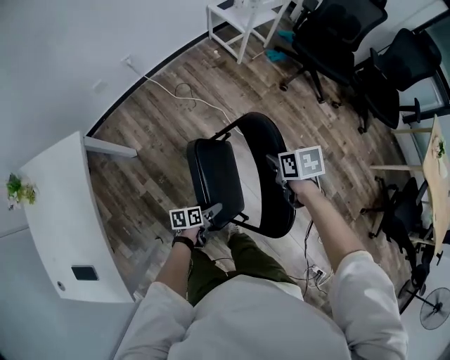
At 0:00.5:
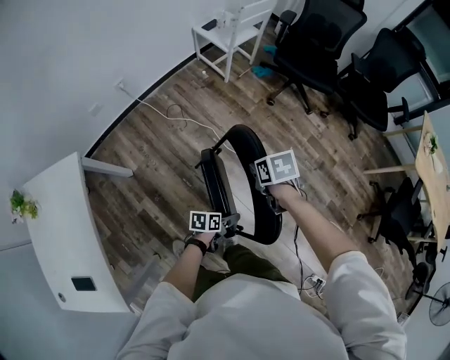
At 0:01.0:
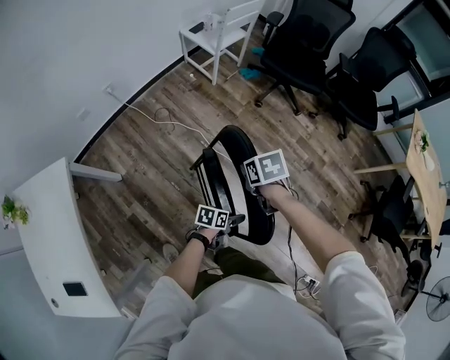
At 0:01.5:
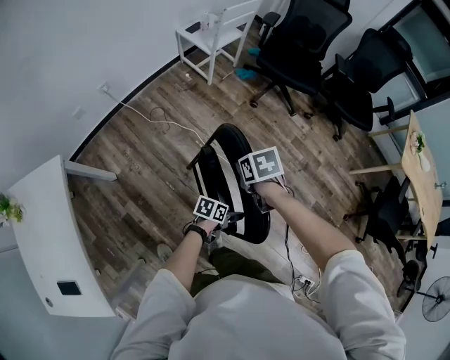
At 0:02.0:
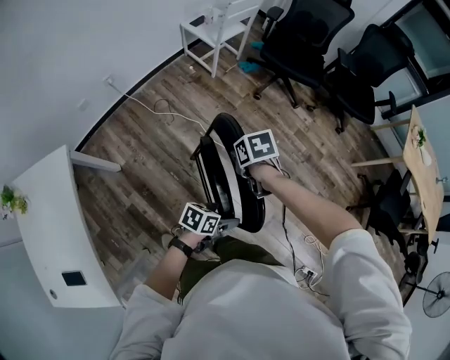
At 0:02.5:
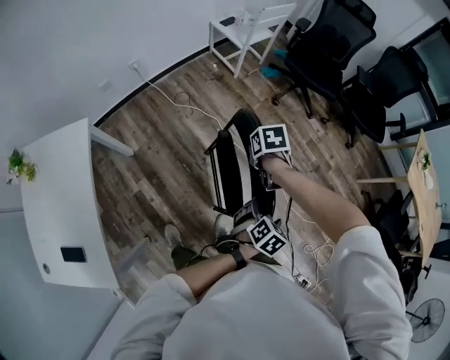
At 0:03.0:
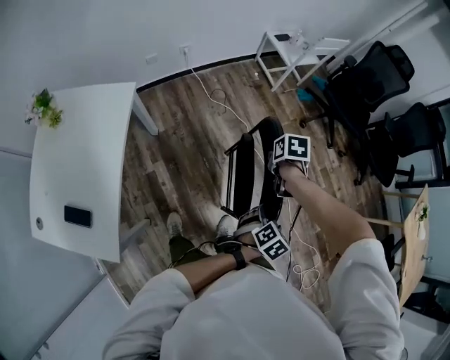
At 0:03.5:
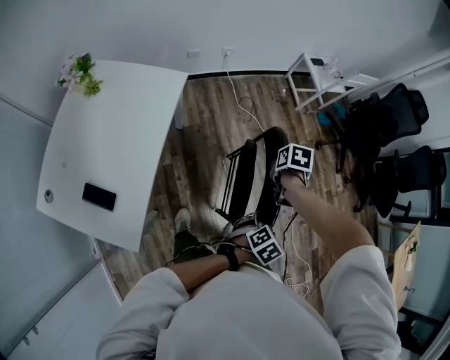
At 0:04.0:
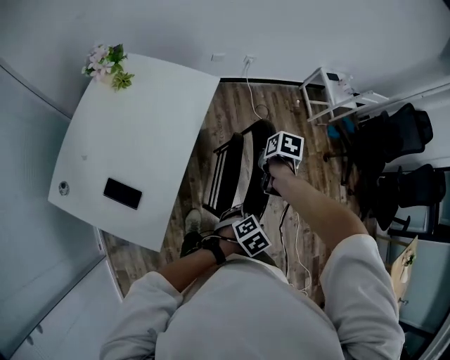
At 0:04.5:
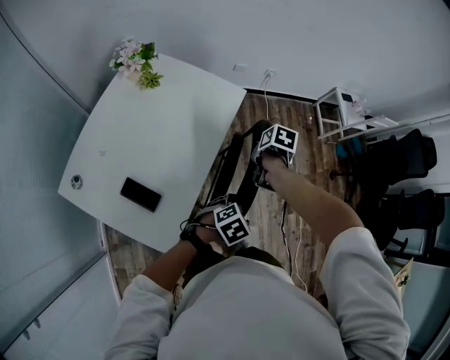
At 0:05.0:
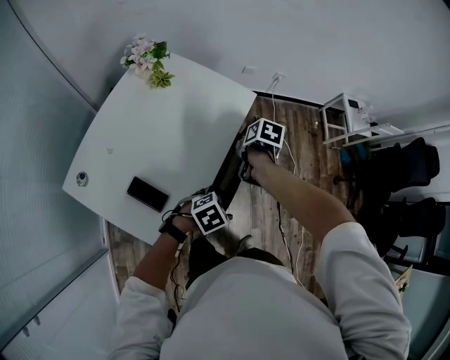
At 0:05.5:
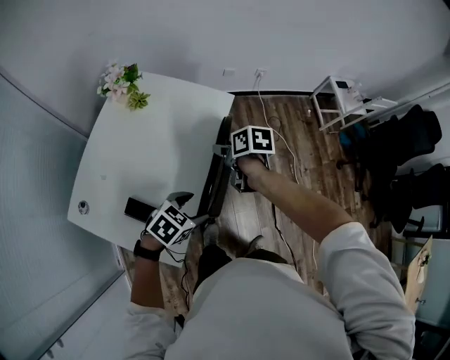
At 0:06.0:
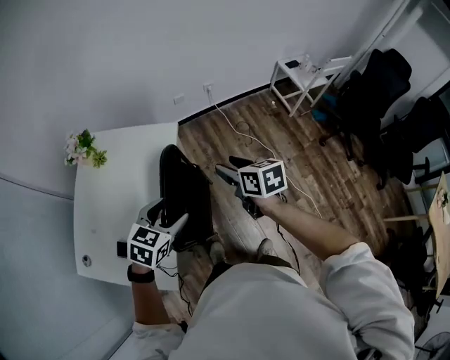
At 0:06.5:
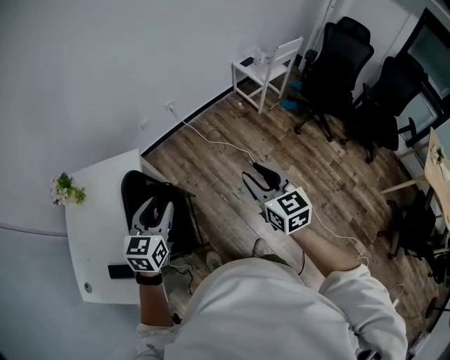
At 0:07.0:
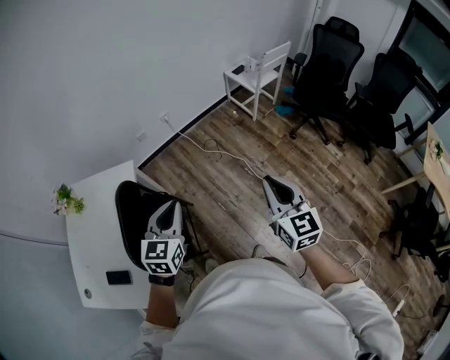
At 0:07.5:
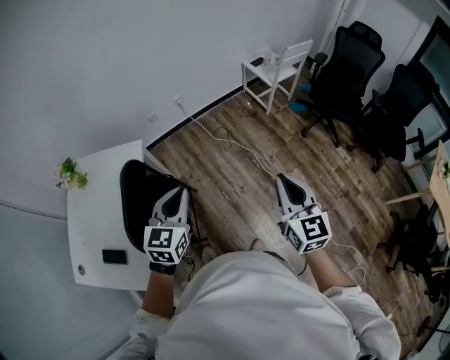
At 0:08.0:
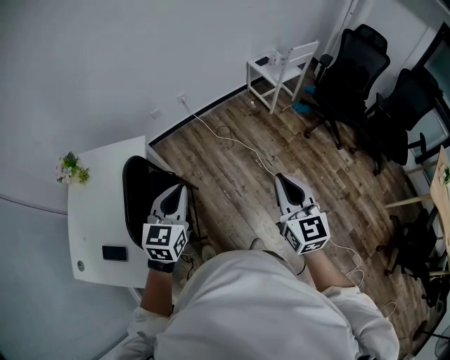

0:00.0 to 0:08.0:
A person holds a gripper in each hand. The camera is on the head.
0:00.0 to 0:02.0: The left gripper moves approximately 25 cm, and changes its angle by approximately 40 degrees.
0:02.0 to 0:04.0: The right gripper changes place by approximately 50 cm. Meanwhile the left gripper ends up some 40 cm from where it was, and swivels roughly 40 degrees.
0:04.0 to 0:06.0: The right gripper travels upward by approximately 15 cm, points its fingers some 40 degrees further upward, and opens up, while the left gripper ends up some 25 cm from where it was, and rotates some 20 degrees.
0:06.0 to 0:08.0: The right gripper is displaced to the right by approximately 35 cm, rotates approximately 40 degrees, and closes its fingers. Meanwhile the left gripper goes roughly 25 cm to the right and upward, swivels about 20 degrees, and closes its fingers.

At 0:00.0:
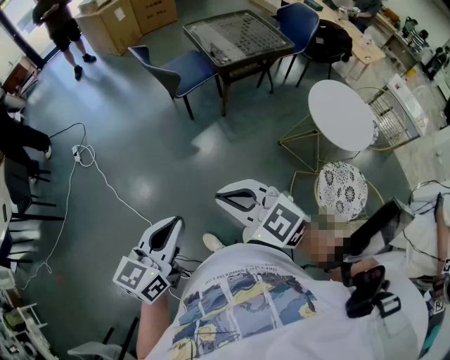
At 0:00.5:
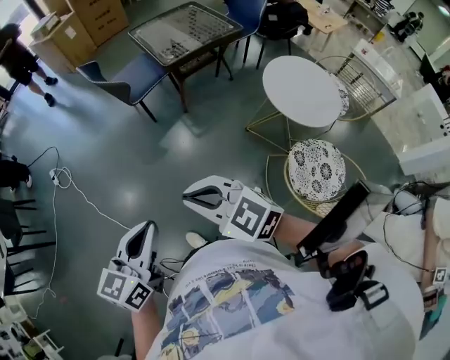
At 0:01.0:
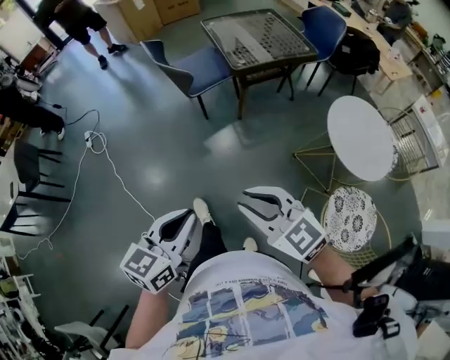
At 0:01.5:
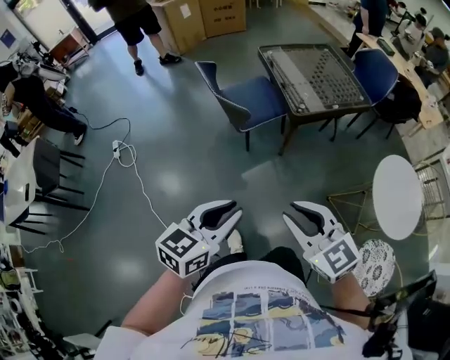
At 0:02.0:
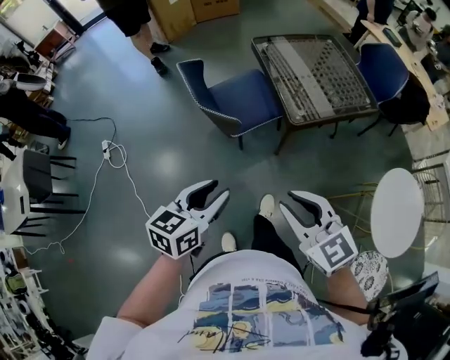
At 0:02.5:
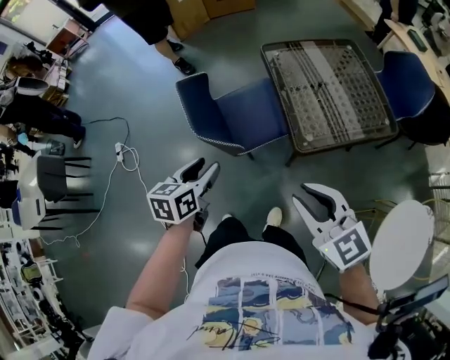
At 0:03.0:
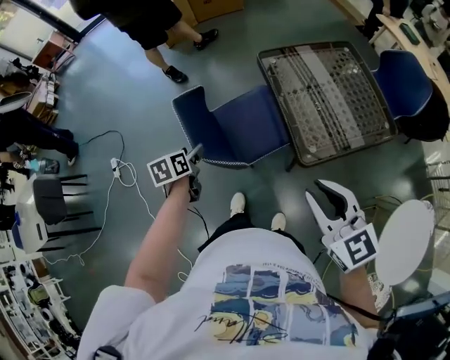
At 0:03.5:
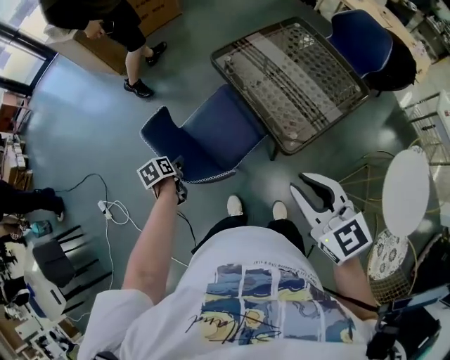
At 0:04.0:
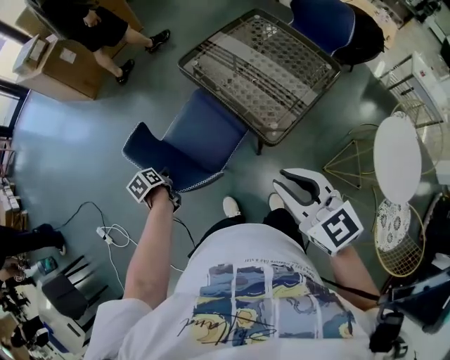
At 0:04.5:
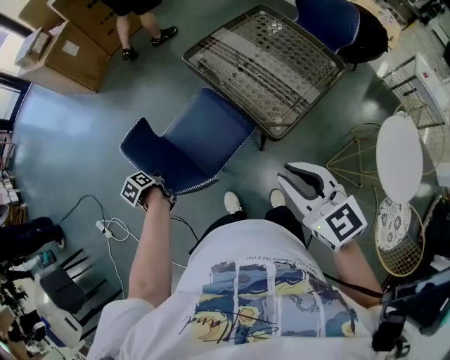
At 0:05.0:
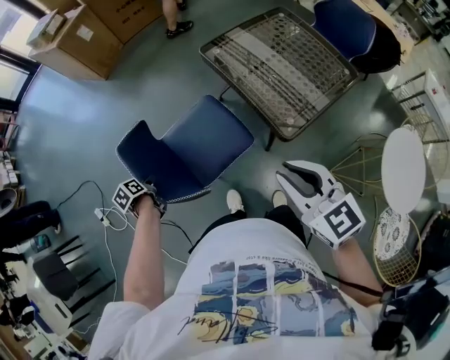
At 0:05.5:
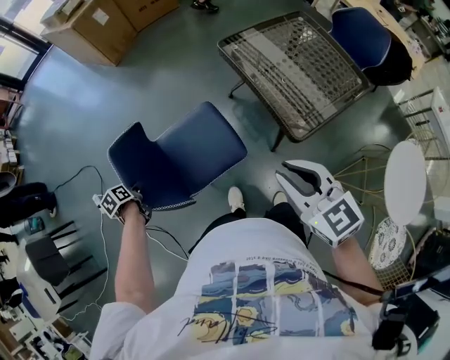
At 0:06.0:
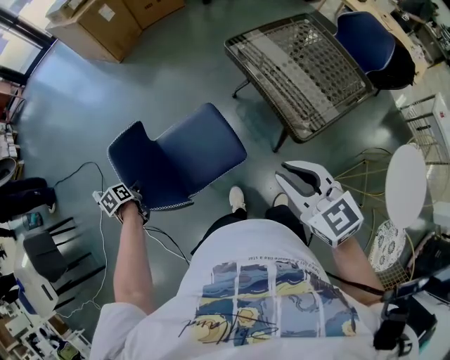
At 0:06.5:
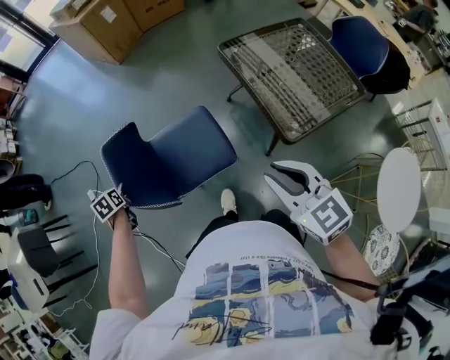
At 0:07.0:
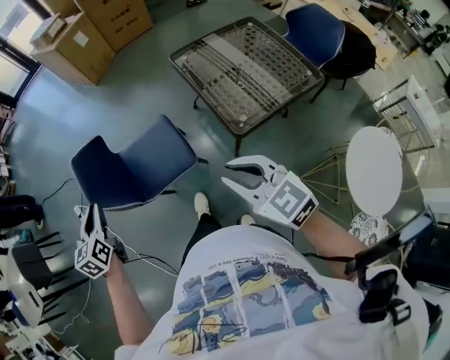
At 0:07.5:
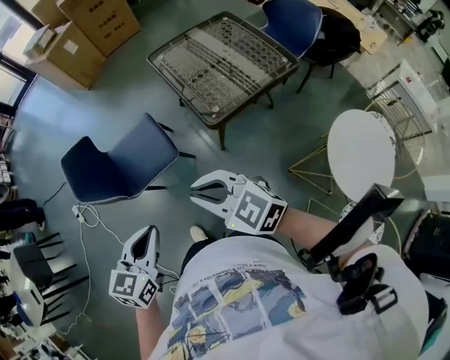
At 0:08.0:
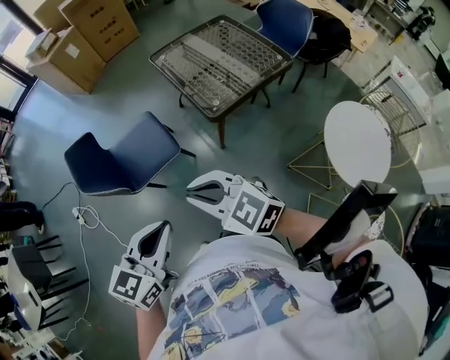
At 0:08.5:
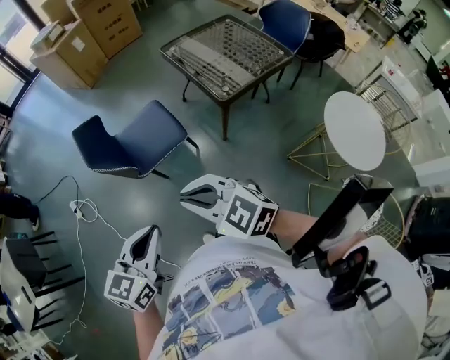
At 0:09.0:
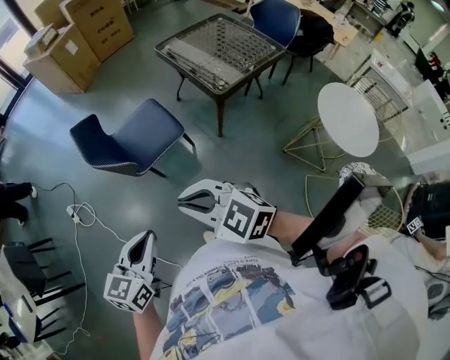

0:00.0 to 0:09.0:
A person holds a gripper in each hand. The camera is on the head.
0:00.0 to 0:02.0: The pair of grippers is taken forward, some 50 cm. The left gripper opens.
0:02.0 to 0:04.5: The right gripper travels forward by about 25 cm, and turns by some 20 degrees, while the left gripper moves forward, downward and to the left, some 50 cm, angles its fingers downward, by roughly 30 degrees, and opens, then closes again.
0:04.5 to 0:07.0: The right gripper ends up approximately 10 cm from where it was, and swivels roughly 30 degrees; the left gripper moves upward, approximately 25 cm, and swivels about 50 degrees.
0:07.0 to 0:09.0: The right gripper is displaced to the left and backward by some 35 cm, while the left gripper goes approximately 35 cm backward, and turns by roughly 40 degrees.

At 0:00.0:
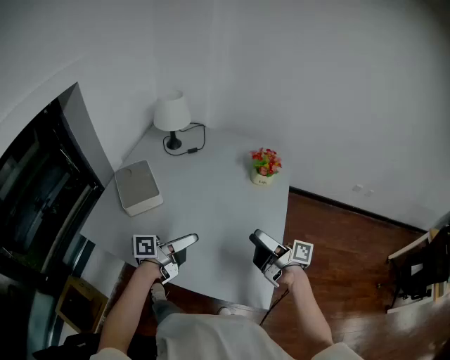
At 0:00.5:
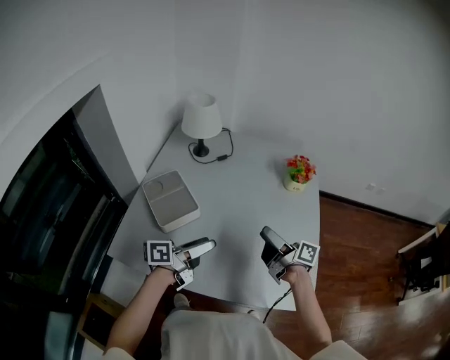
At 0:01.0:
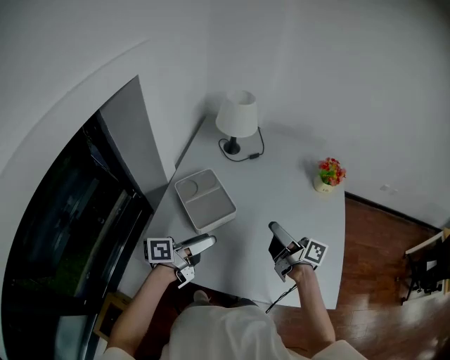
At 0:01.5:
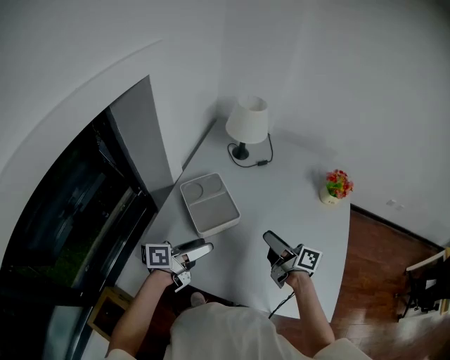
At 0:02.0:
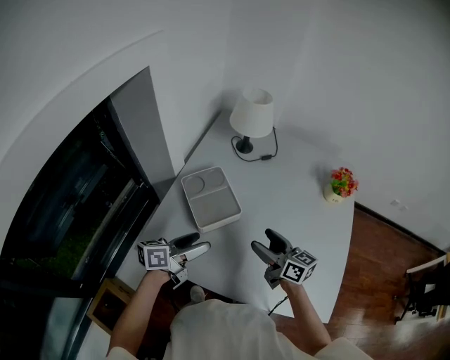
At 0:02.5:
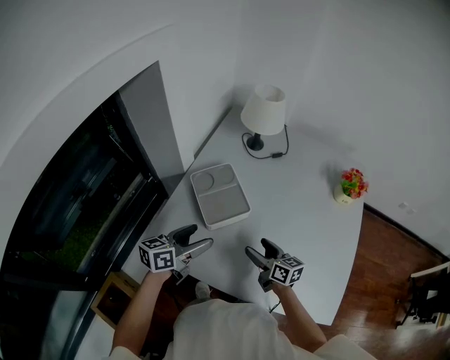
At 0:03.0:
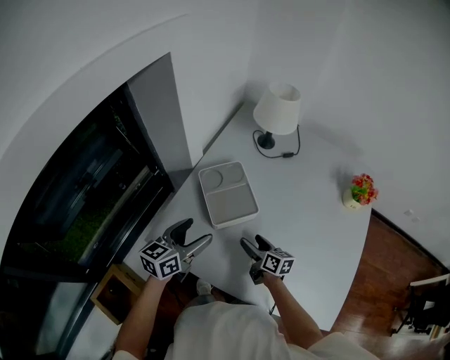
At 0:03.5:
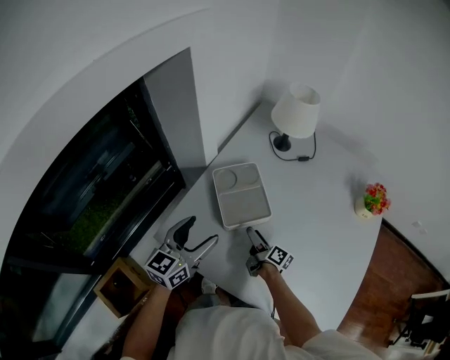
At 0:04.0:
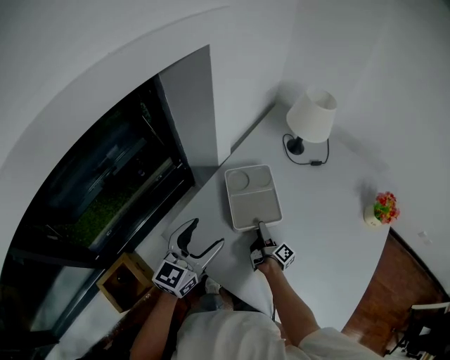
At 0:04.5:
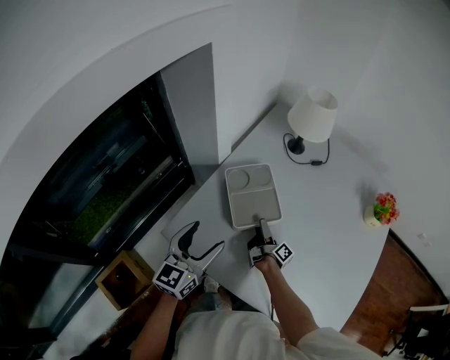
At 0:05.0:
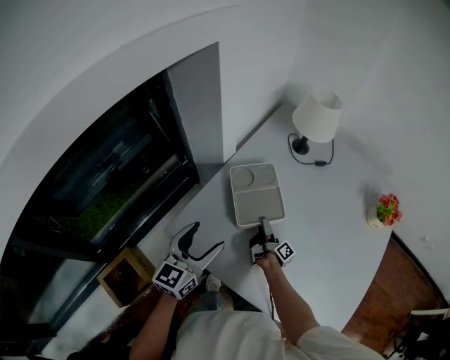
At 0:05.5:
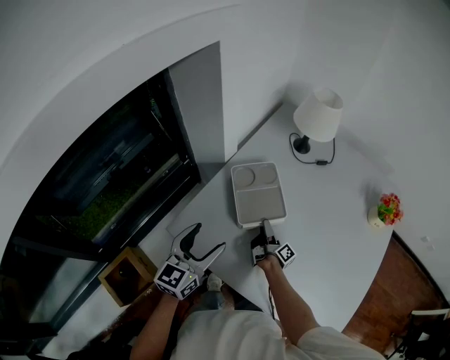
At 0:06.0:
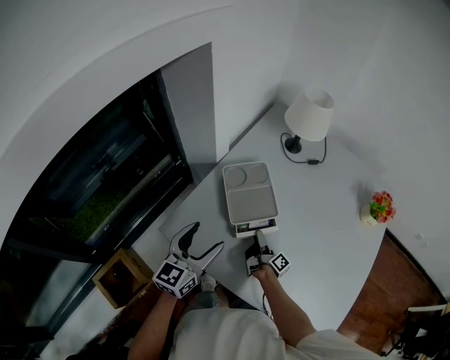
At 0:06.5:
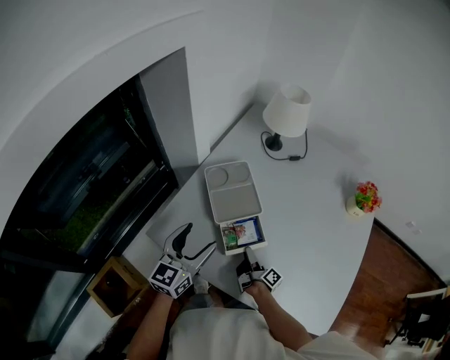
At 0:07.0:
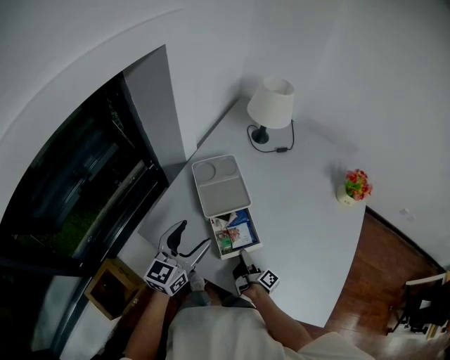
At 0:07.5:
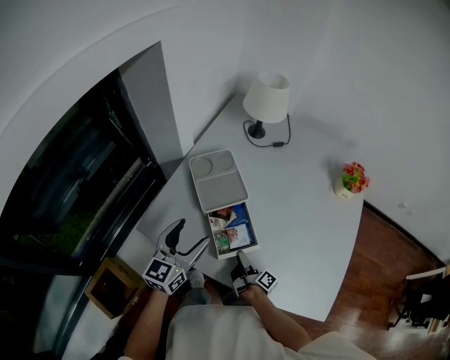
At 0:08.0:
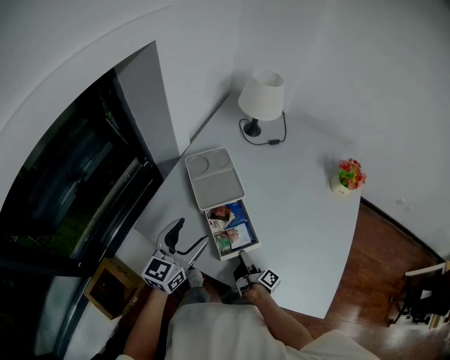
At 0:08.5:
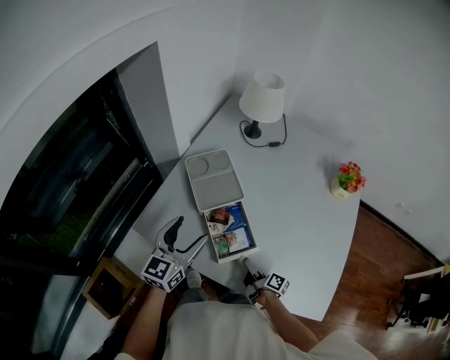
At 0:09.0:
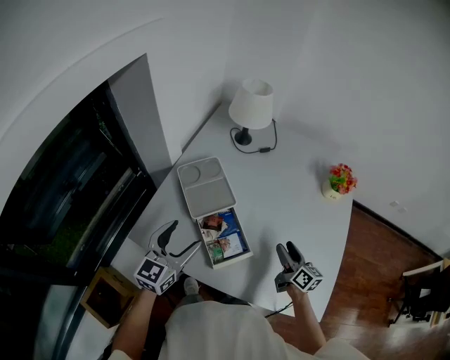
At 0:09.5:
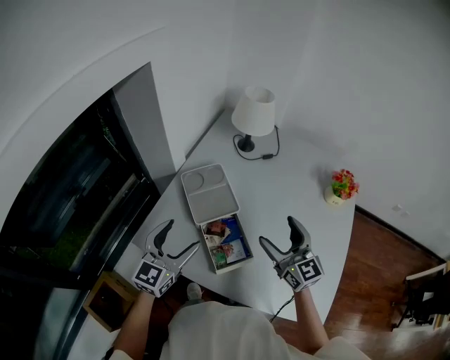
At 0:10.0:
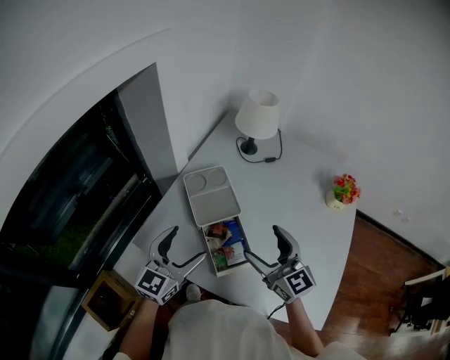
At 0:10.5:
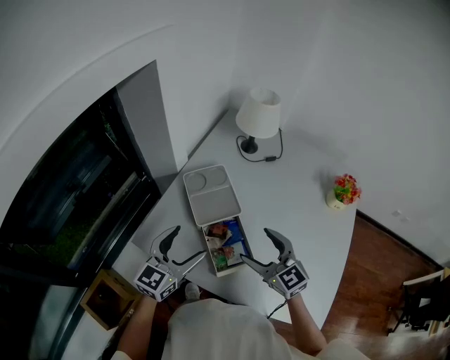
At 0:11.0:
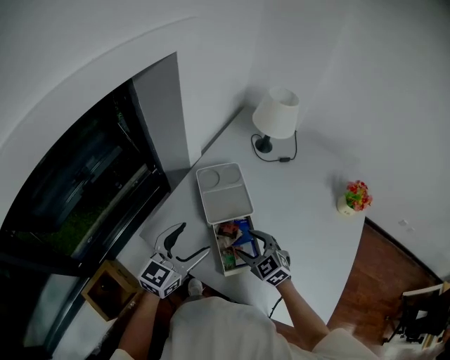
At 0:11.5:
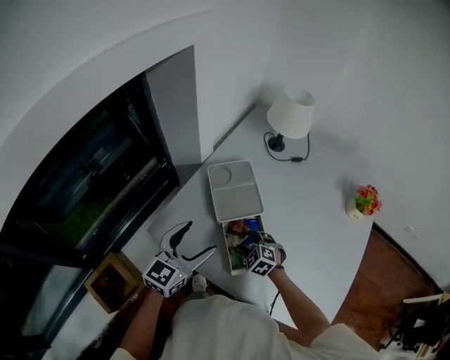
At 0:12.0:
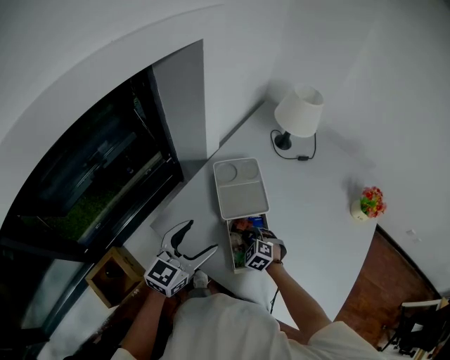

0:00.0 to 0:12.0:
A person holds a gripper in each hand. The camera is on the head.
0:00.0 to 0:02.0: The two grippers go about 30 cm to the left. The right gripper rolls counterclockwise, seen from behind, by roughly 40 degrees.
0:02.0 to 0:04.0: The right gripper shifts roughly 25 cm downward, forward and to the left, and twists roughly 50 degrees clockwise, seen from behind. Meanwhile the left gripper goes approximately 10 cm to the left, and turns by some 60 degrees.
0:04.0 to 0:06.0: The right gripper closes its fingers.
0:06.0 to 0:08.0: The left gripper shifts roughly 5 cm to the right, while the right gripper heads backward and to the right, covering approximately 15 cm.
0:08.0 to 0:10.0: The right gripper goes about 30 cm upward, twists some 90 degrees counterclockwise, seen from behind, and opens its fingers.
0:10.0 to 0:12.0: The right gripper travels downward by approximately 30 cm, angles its fingers downward, by some 50 degrees, and closes, while the left gripper ends up roughly 5 cm from where it was.
